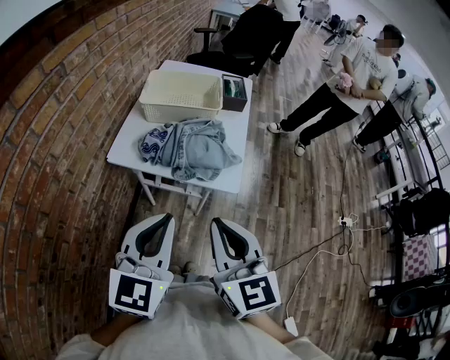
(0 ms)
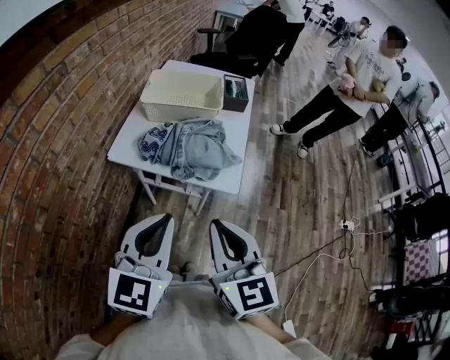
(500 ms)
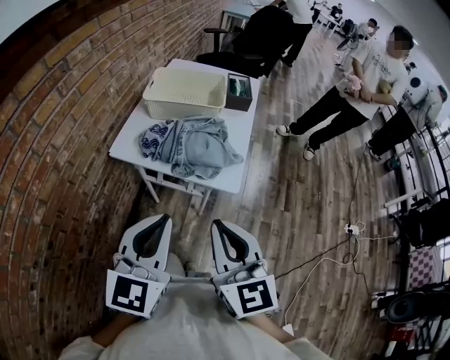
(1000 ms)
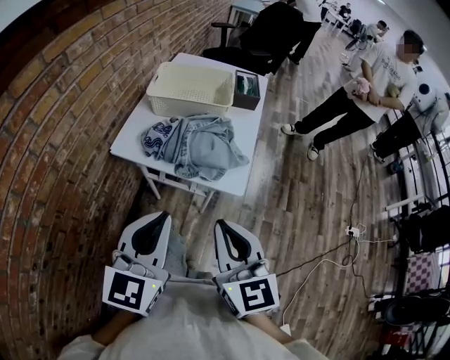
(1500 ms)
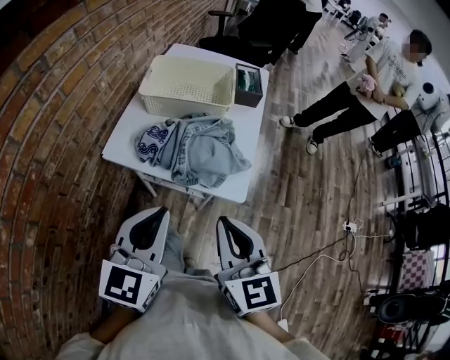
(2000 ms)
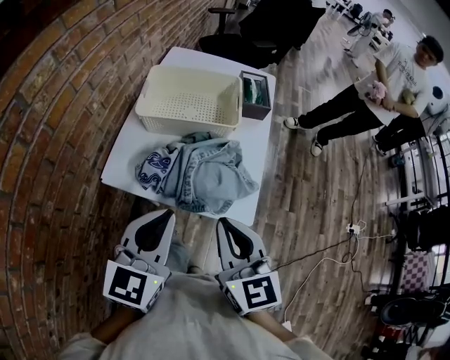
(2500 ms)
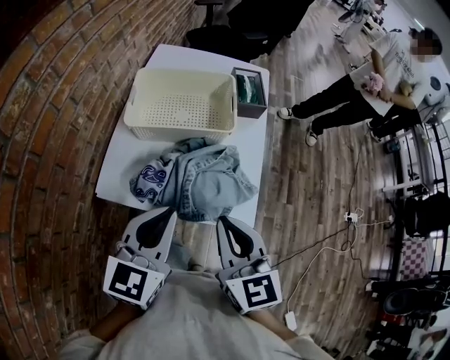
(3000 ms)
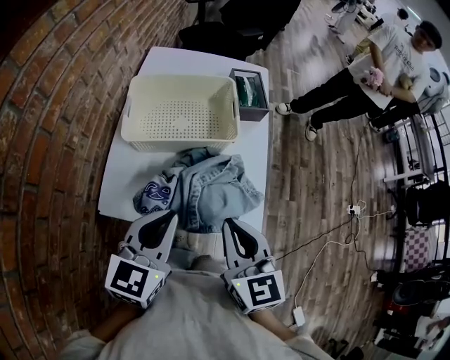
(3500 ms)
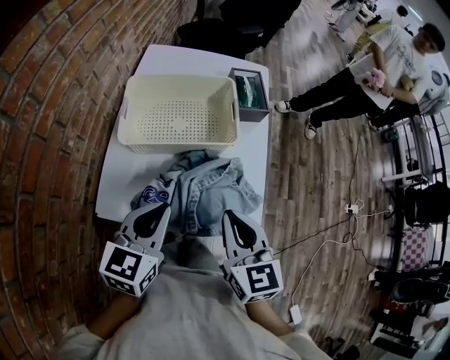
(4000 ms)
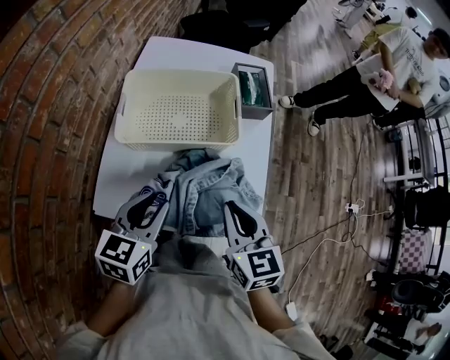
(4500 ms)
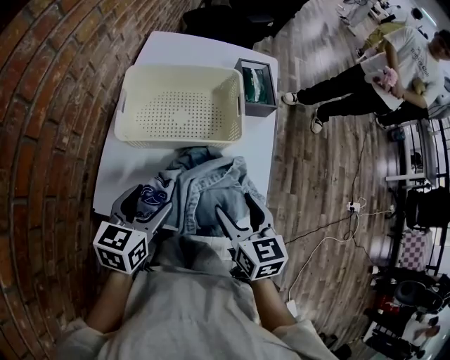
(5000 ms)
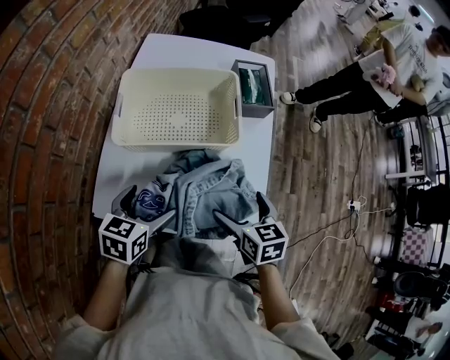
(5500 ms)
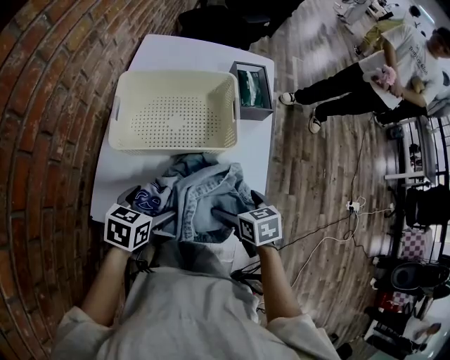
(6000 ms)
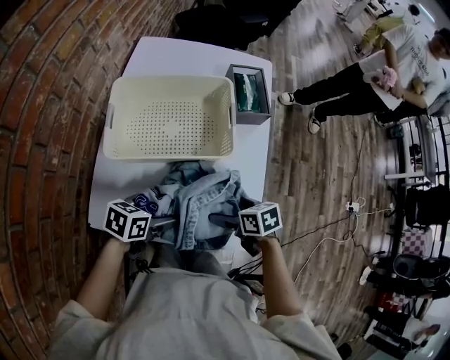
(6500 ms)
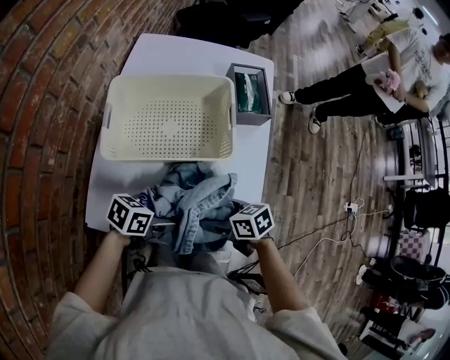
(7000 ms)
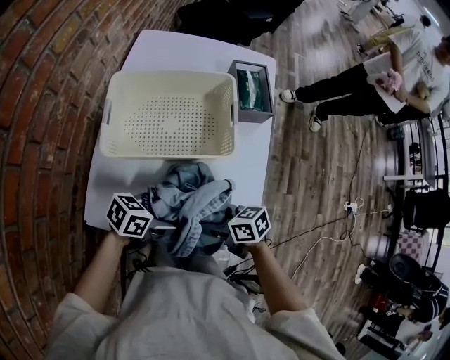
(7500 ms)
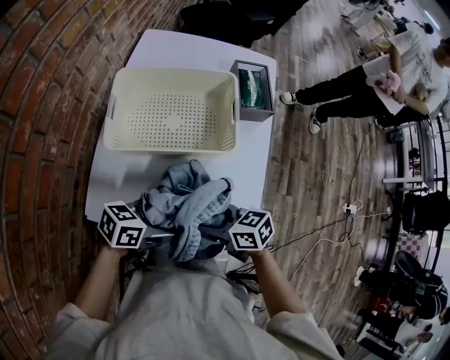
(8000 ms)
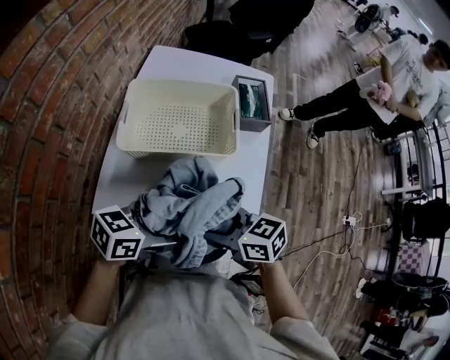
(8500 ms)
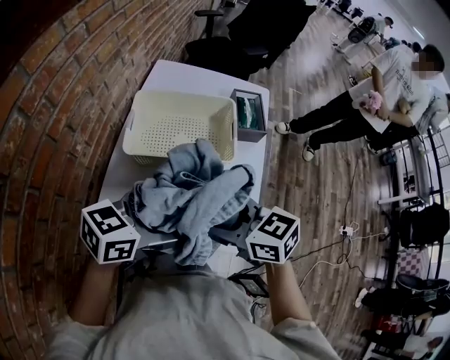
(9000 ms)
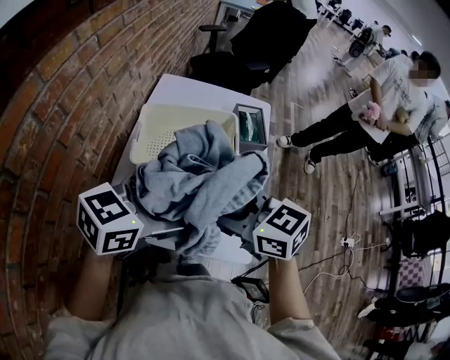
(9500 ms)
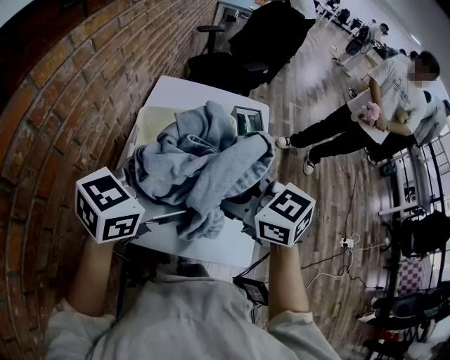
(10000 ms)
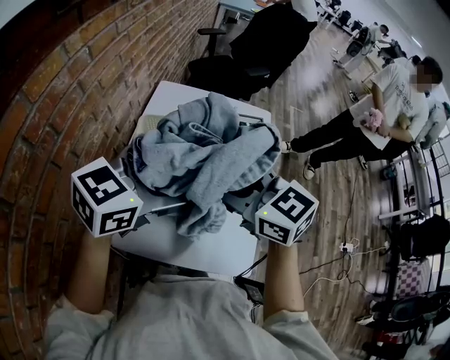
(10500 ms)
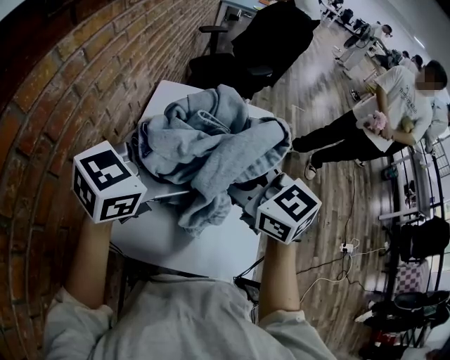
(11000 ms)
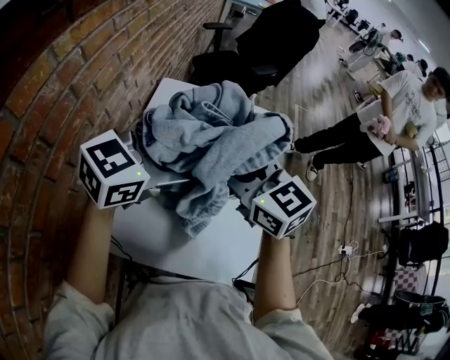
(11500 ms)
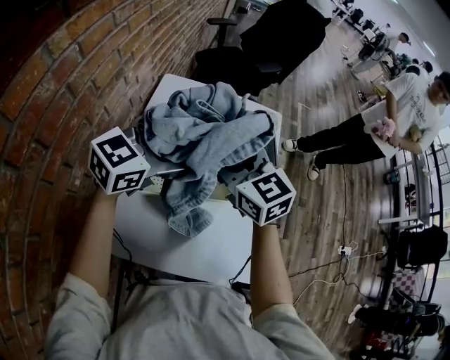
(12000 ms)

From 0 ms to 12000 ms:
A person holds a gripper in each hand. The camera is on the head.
From 0 ms to 2000 ms: Both grippers travel together forward, about 10 cm.
From 2000 ms to 4000 ms: The grippers both shift forward by some 20 cm. The left gripper swivels about 20 degrees.
From 4000 ms to 6000 ms: The two grippers go some 15 cm downward. The right gripper tips its fingers downward by approximately 30 degrees, and opens up. Meanwhile the left gripper swivels some 30 degrees, and opens its fingers.
From 6000 ms to 8000 ms: The left gripper moves roughly 10 cm, and turns by about 30 degrees. Meanwhile the right gripper changes place by approximately 10 cm, changes its angle by roughly 40 degrees, and closes up.
From 8000 ms to 10000 ms: Both grippers travel together upward, some 25 cm. The right gripper changes its angle by approximately 40 degrees. The left gripper rotates roughly 40 degrees.
From 10000 ms to 12000 ms: Both grippers travel together forward, roughly 15 cm.

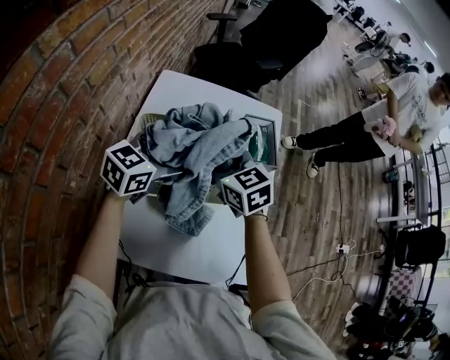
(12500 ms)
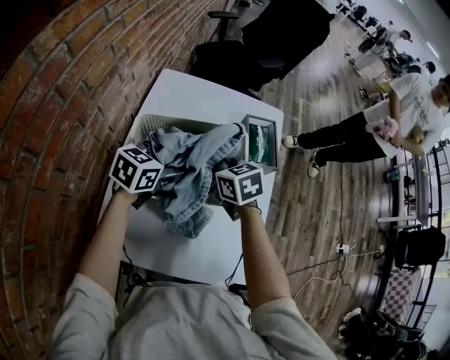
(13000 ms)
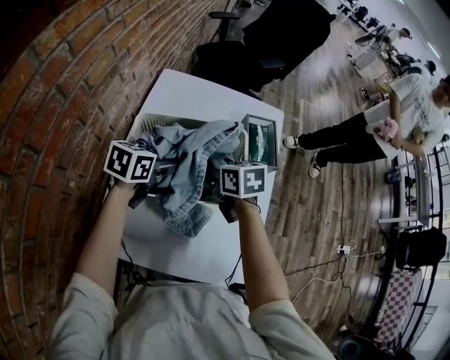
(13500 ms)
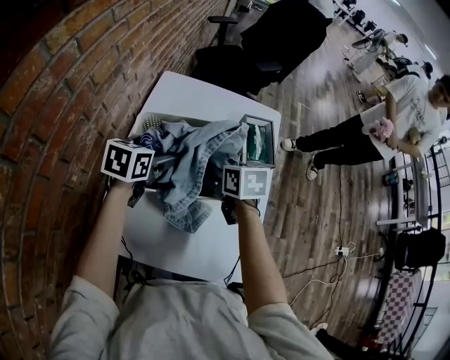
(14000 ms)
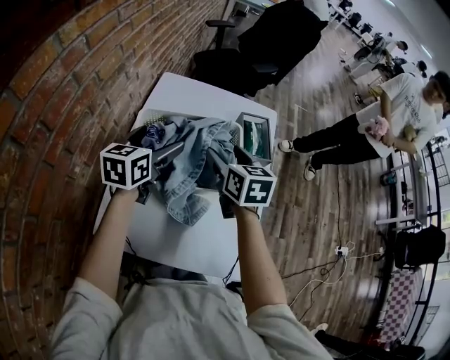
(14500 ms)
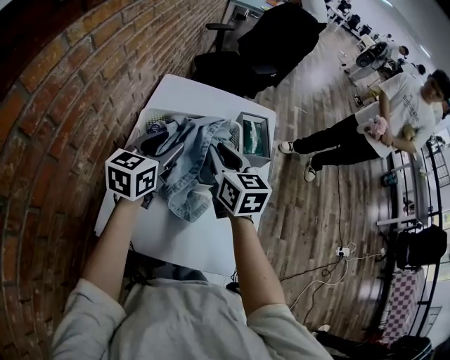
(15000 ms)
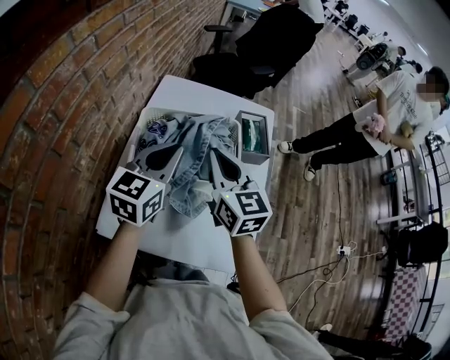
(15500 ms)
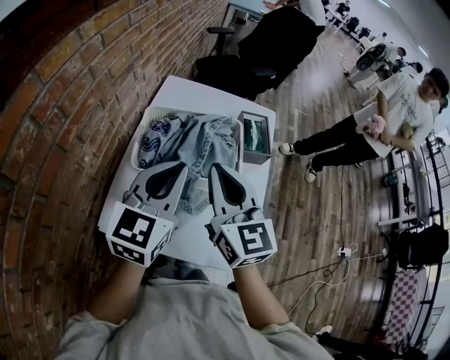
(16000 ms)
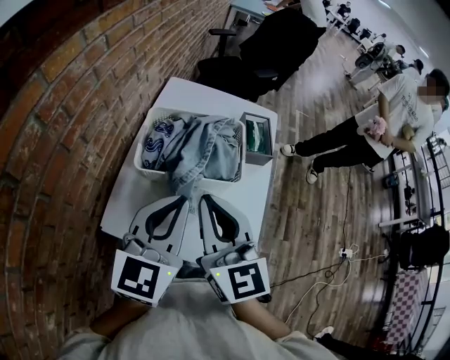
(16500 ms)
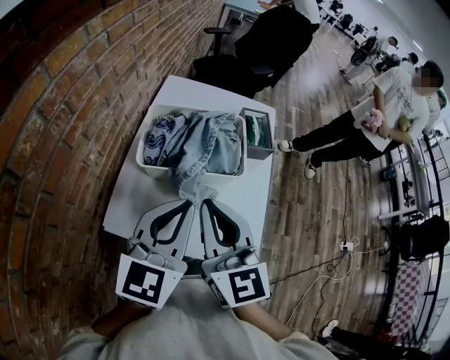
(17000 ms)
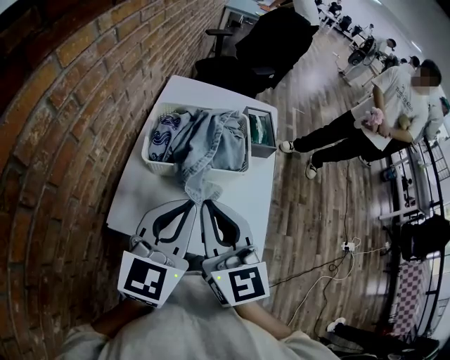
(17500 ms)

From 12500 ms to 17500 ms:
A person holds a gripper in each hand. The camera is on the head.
From 12500 ms to 15000 ms: The right gripper travels downward and back again, approximately 5 cm each way, rotates roughly 20 degrees, and closes up. Meanwhile the left gripper travels downward and back again, approximately 10 cm each way, swivels approximately 20 degrees, and closes up.
From 15000 ms to 17500 ms: Both grippers move backward, roughly 25 cm. The left gripper closes its fingers. Meanwhile the right gripper swivels approximately 20 degrees.

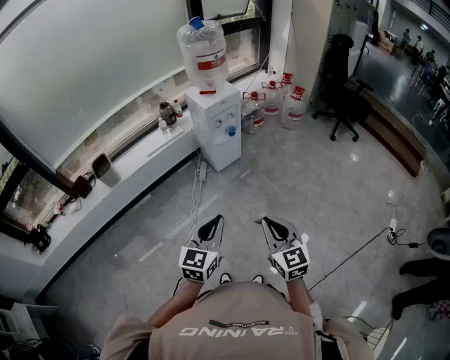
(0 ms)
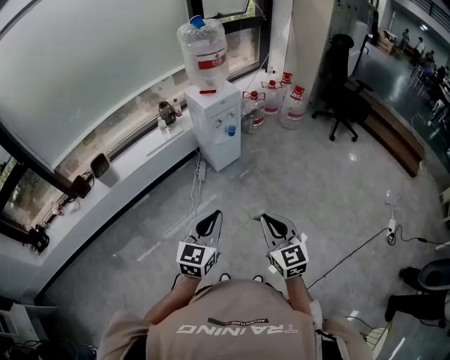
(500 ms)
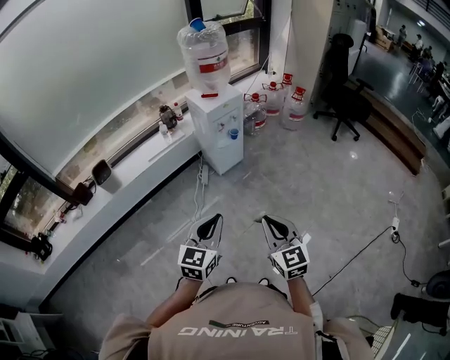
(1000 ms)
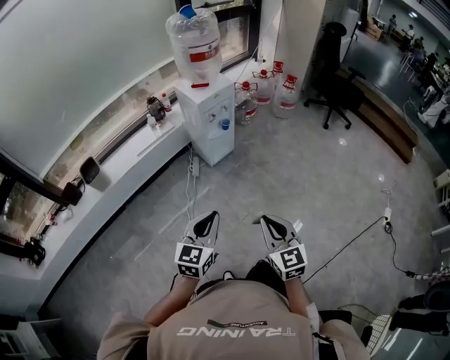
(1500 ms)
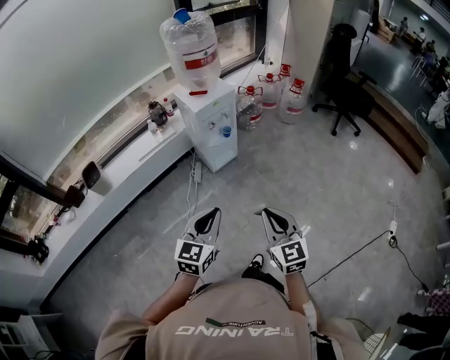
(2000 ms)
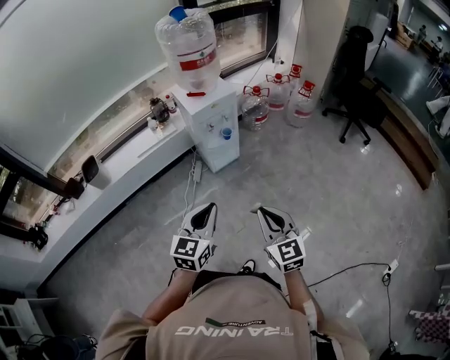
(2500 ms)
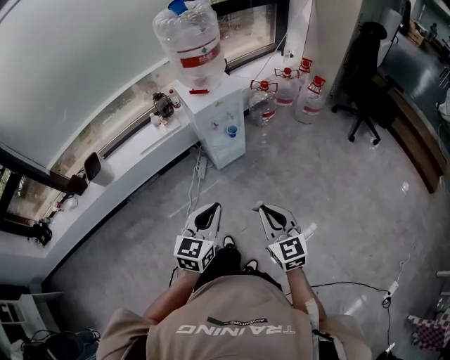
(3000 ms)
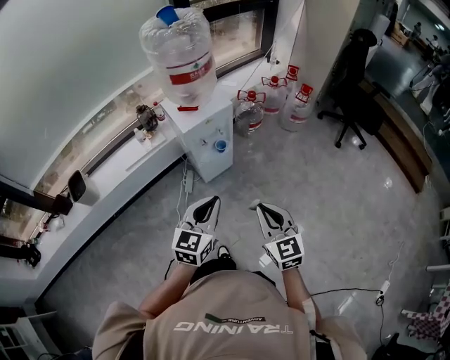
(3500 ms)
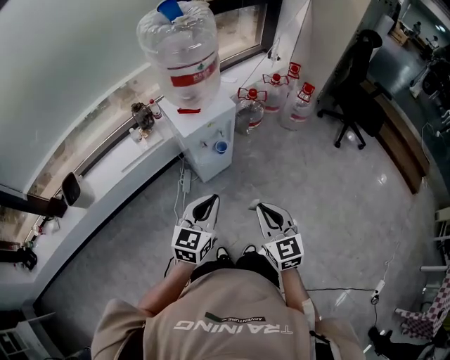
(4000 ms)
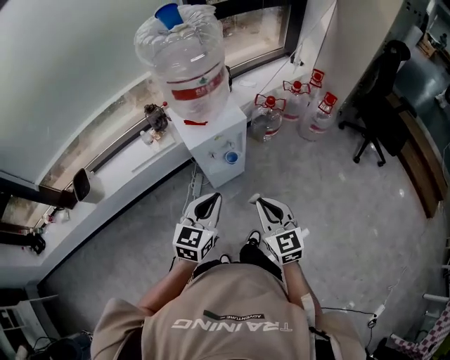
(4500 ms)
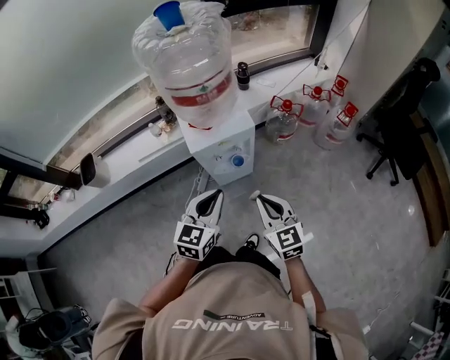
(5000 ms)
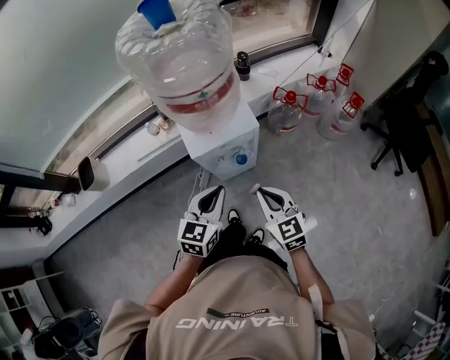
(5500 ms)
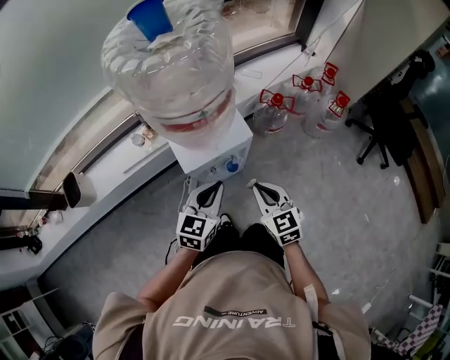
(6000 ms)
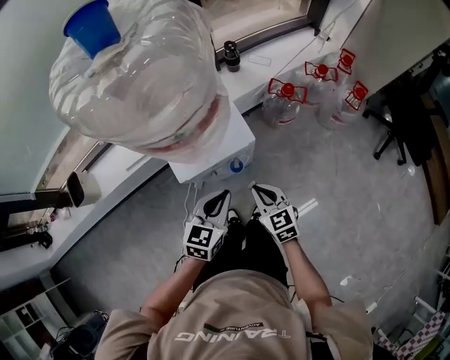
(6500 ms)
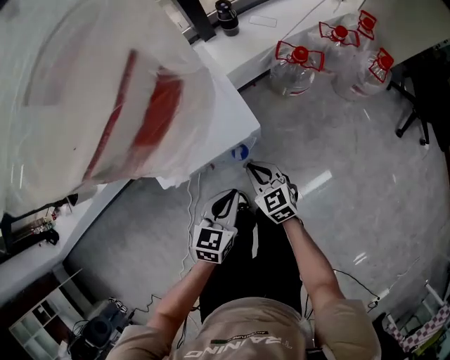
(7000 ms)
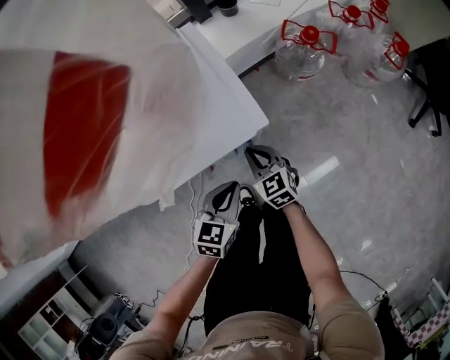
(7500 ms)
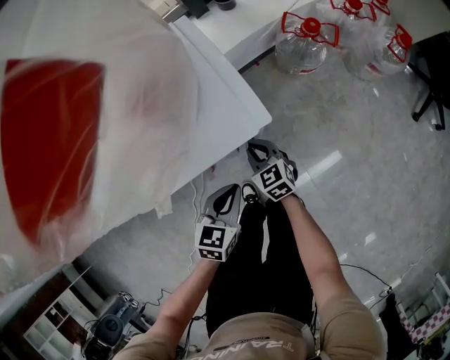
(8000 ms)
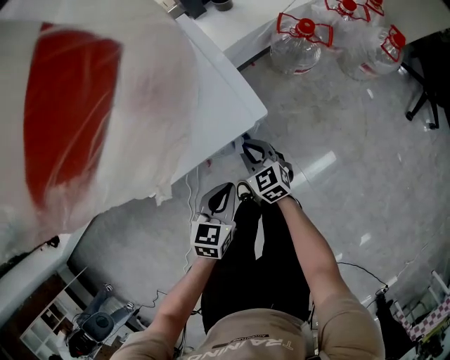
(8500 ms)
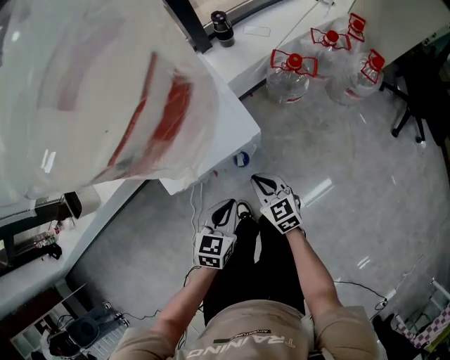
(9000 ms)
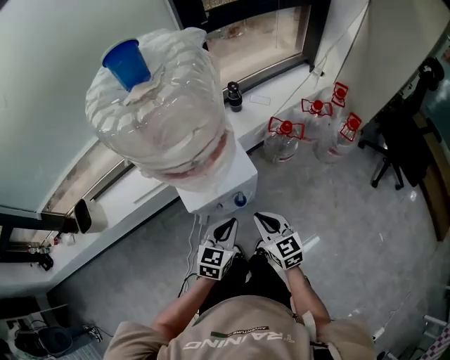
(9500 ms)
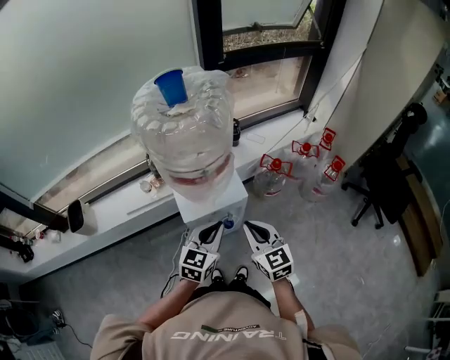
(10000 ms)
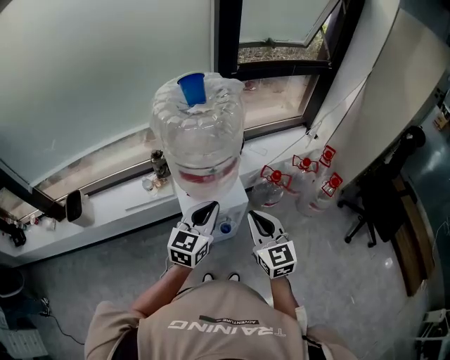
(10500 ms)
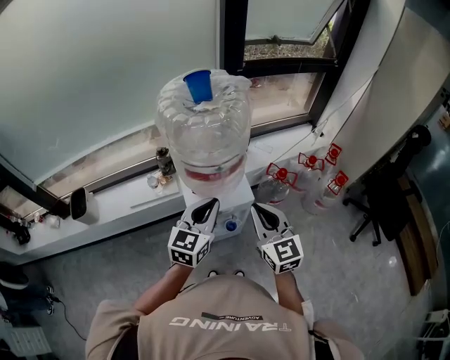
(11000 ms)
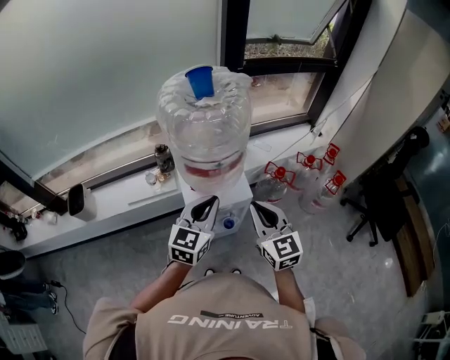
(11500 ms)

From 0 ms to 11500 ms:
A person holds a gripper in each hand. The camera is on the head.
From 0 ms to 2000 ms: The grippers both shift forward by roughly 15 cm.
From 2000 ms to 4000 ms: The grippers both shift forward by roughly 30 cm.
From 4000 ms to 6000 ms: The two grippers go some 30 cm forward.
From 6000 ms to 7500 ms: Both grippers travel together downward, about 30 cm.
From 7500 ms to 9500 ms: The two grippers go roughly 25 cm upward.
From 9500 ms to 11500 ms: Both grippers move upward, some 20 cm. The left gripper turns by some 20 degrees. Meanwhile the right gripper changes its angle by about 20 degrees.
